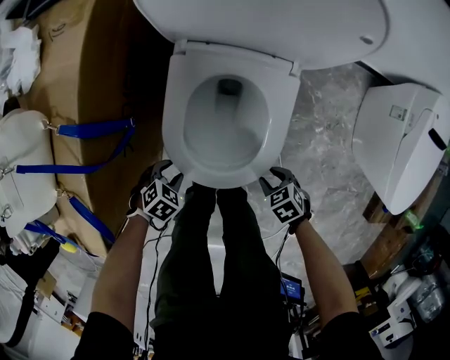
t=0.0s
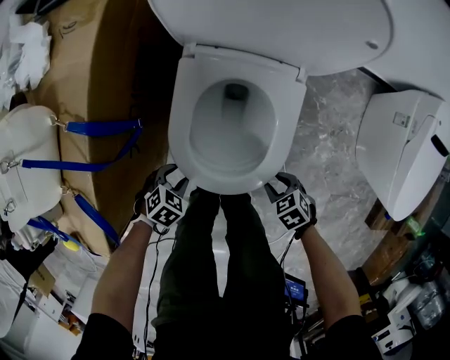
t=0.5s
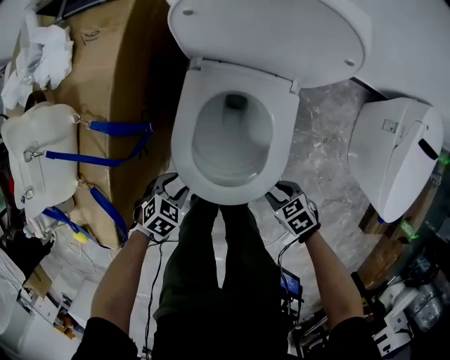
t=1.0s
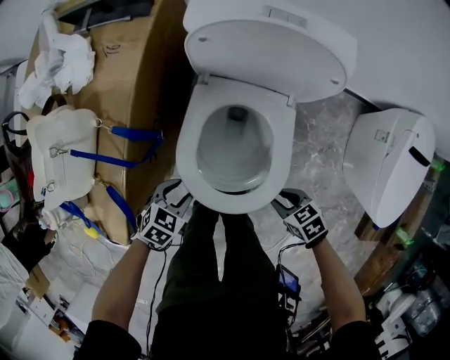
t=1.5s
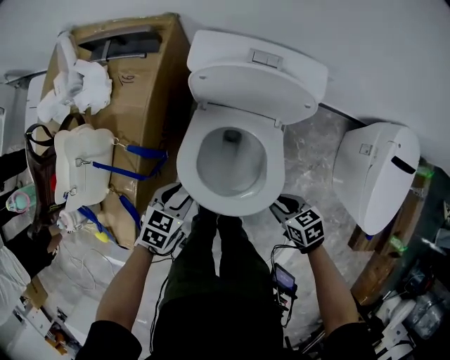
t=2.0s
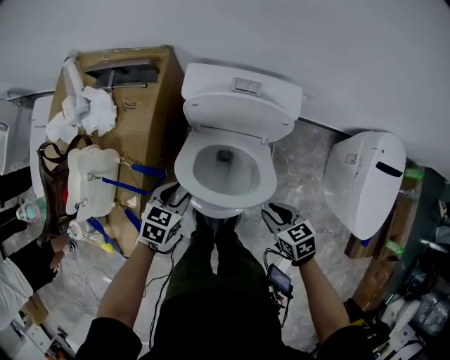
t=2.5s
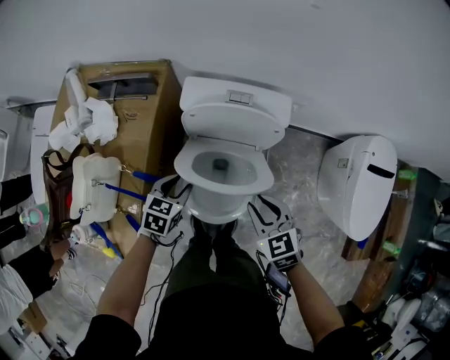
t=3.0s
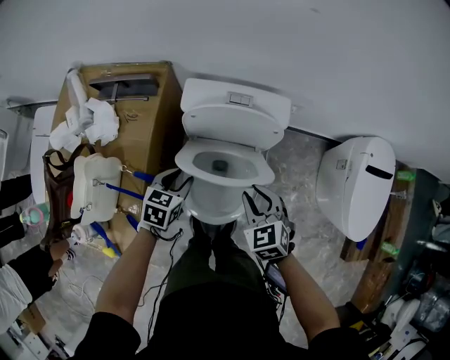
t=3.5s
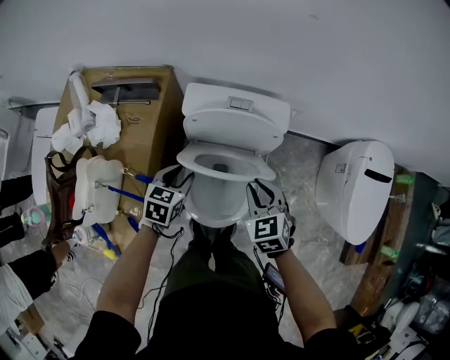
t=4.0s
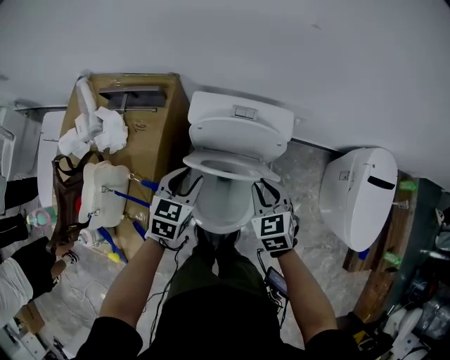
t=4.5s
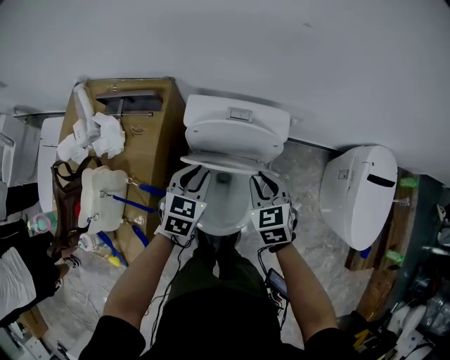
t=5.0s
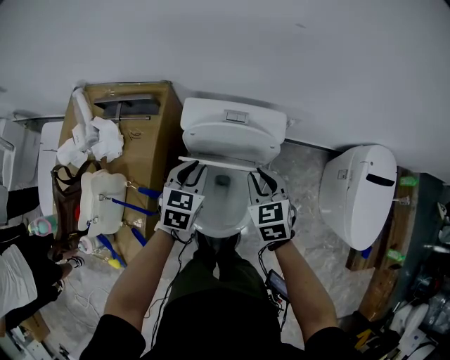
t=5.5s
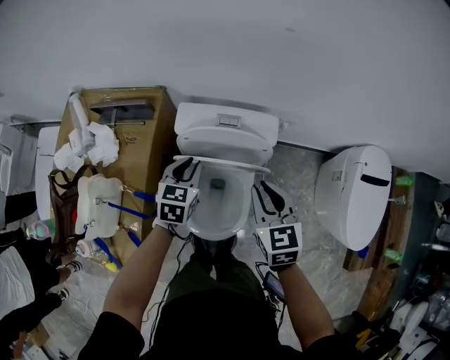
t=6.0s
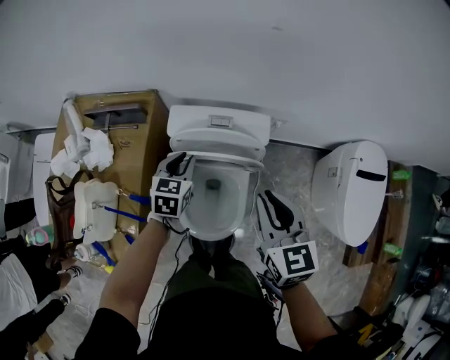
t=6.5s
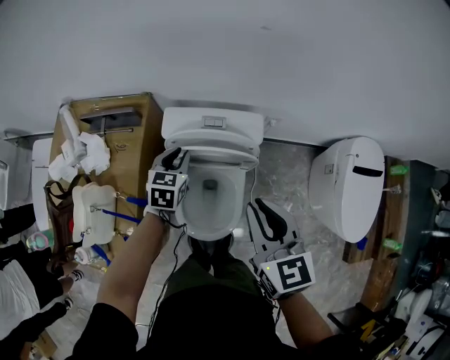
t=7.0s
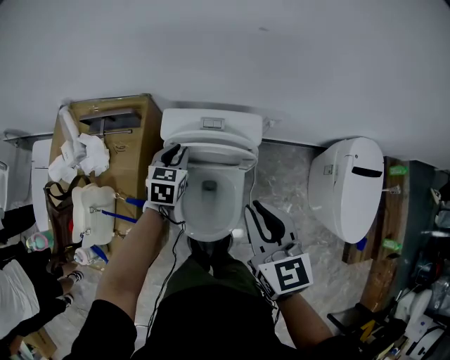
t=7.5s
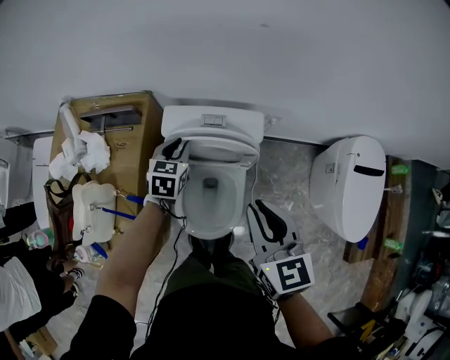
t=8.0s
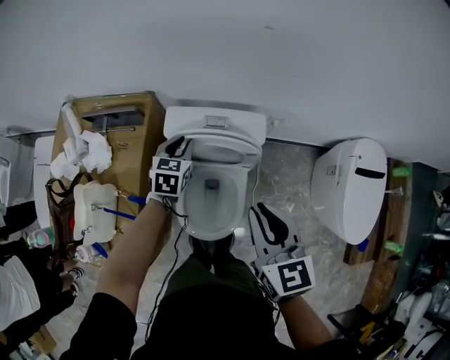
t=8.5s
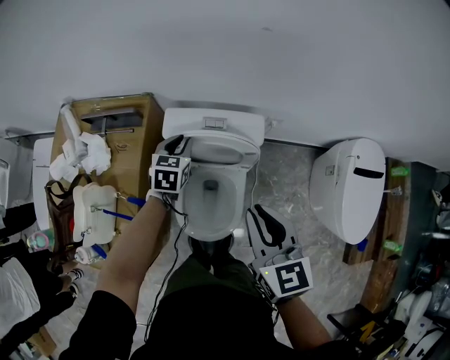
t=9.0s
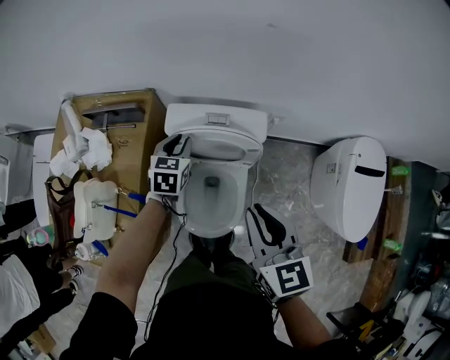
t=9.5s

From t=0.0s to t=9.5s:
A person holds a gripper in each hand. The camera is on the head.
From t=0.0s to t=2.0s: The grippers both shift upward by roughly 25 cm. The right gripper rotates some 20 degrees. Meanwhile the left gripper changes its angle by about 30 degrees.
From t=2.0s to t=4.0s: The left gripper is displaced forward and upward by about 20 cm. The right gripper shifts approximately 25 cm upward and forward, and changes its angle by approximately 40 degrees.
From t=4.0s to t=5.5s: The right gripper travels forward by some 5 cm; the left gripper is displaced upward and forward by some 10 cm.
From t=5.5s to t=7.5s: The left gripper moves forward, about 5 cm. The right gripper heads upward and backward, covering roughly 15 cm, and turns by about 20 degrees.
From t=7.5s to t=9.5s: The grippers move only a little.

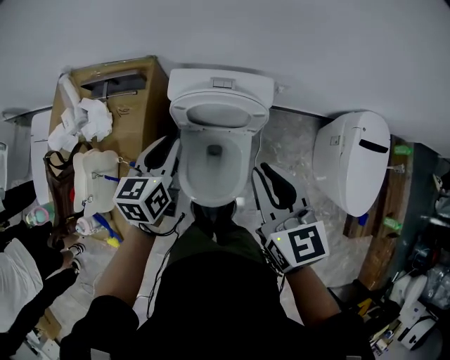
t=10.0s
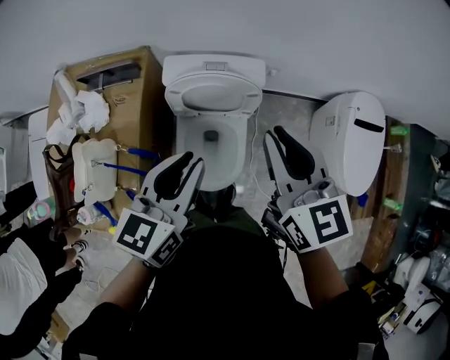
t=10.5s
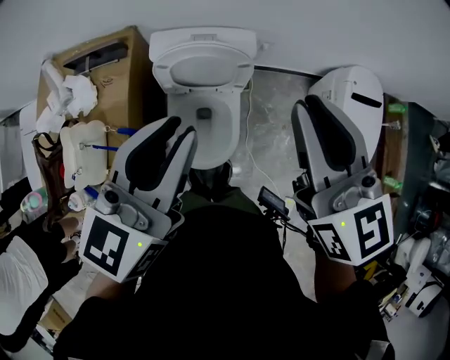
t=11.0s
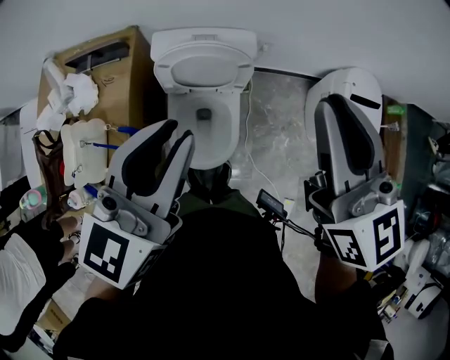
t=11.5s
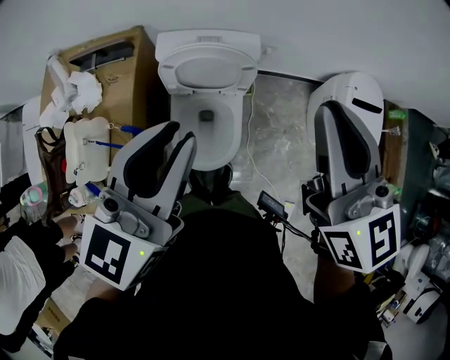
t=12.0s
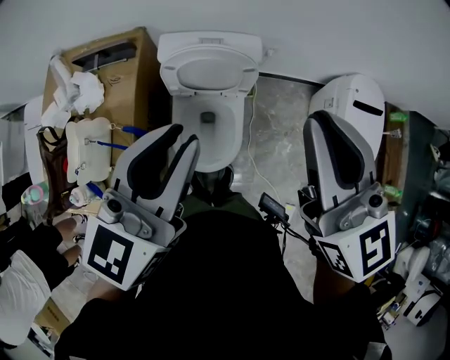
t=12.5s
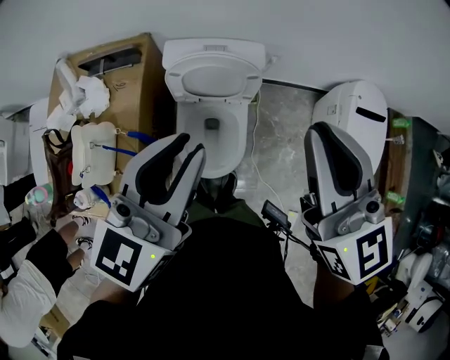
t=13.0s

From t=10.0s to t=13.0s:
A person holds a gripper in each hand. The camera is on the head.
From t=10.0s to t=11.5s: The right gripper heads upward and to the right, covering roughly 20 cm, while the left gripper heads upward, backward and to the right, covering some 25 cm, and rotates roughly 30 degrees.
From t=11.5s to t=13.0s: The grippers stay close to where they were, moving slightly.

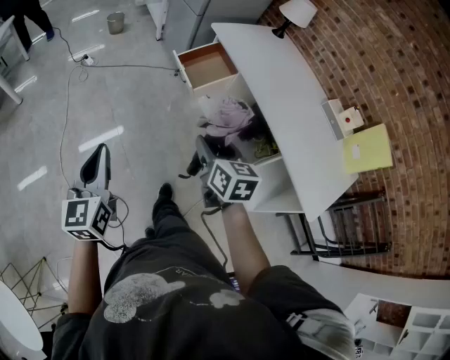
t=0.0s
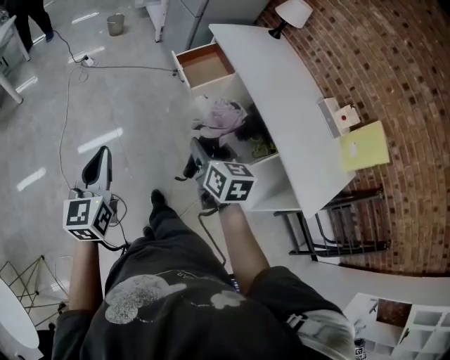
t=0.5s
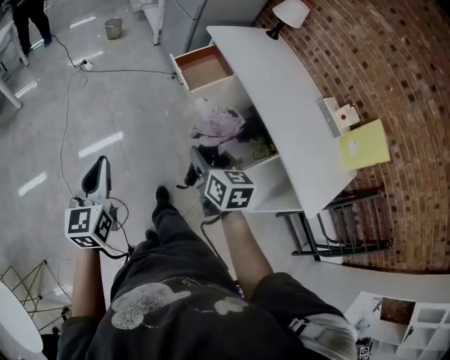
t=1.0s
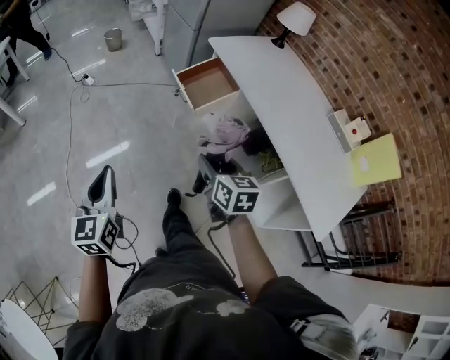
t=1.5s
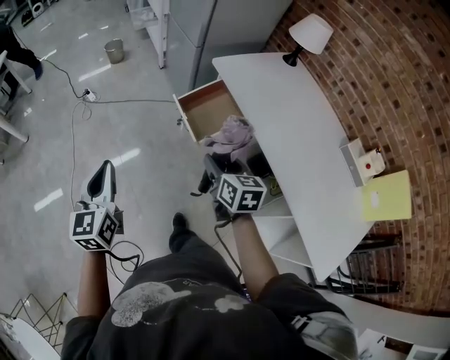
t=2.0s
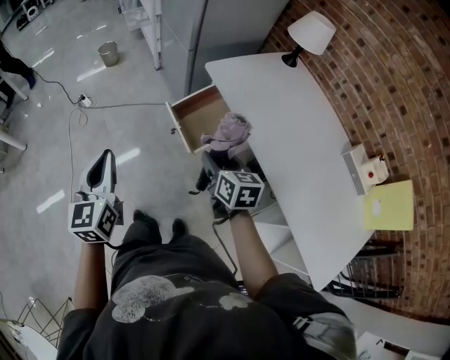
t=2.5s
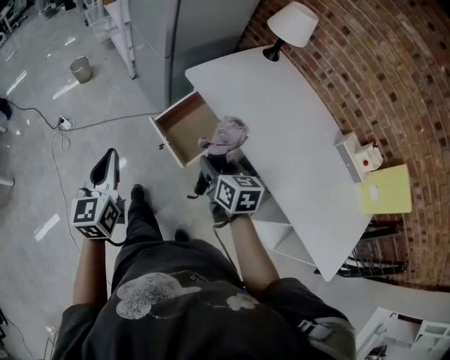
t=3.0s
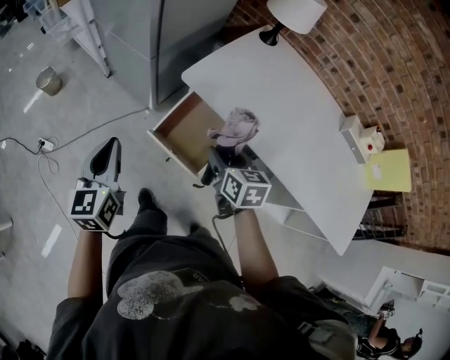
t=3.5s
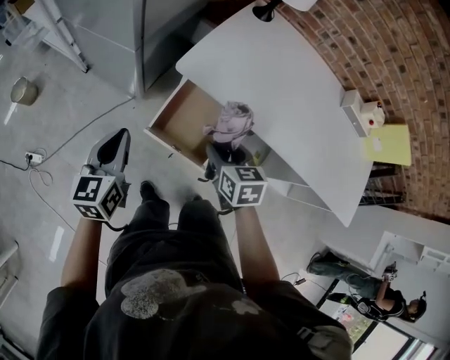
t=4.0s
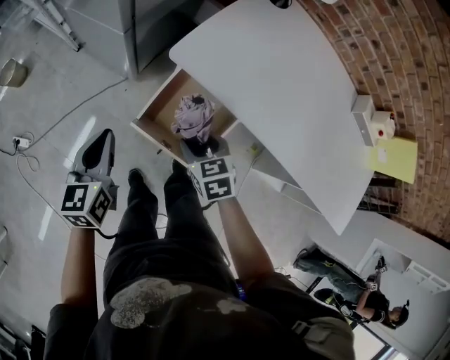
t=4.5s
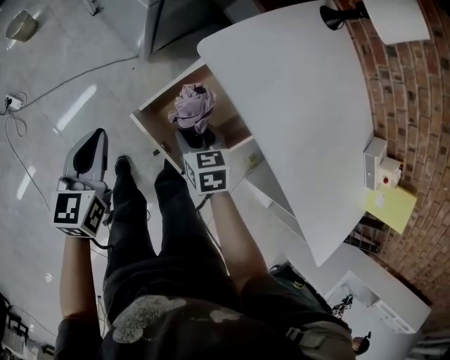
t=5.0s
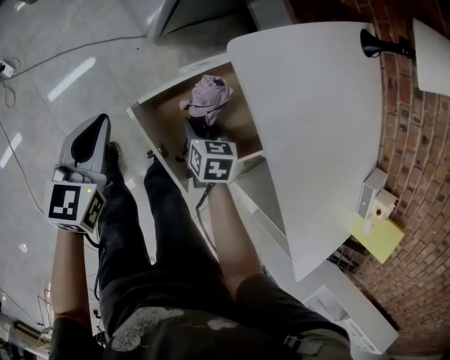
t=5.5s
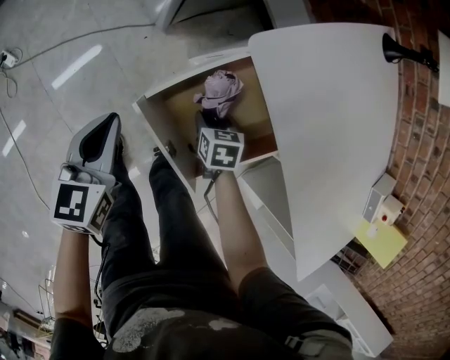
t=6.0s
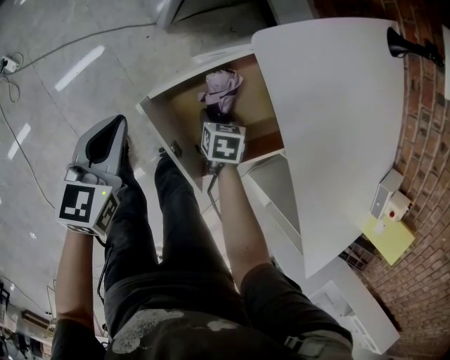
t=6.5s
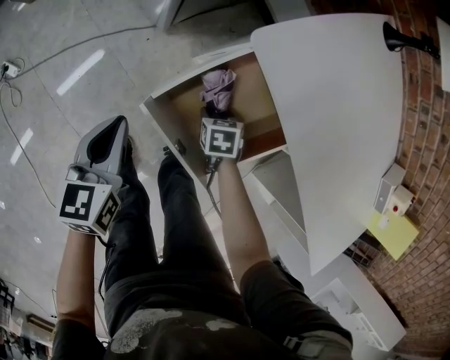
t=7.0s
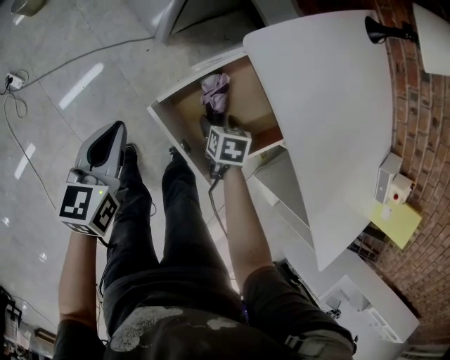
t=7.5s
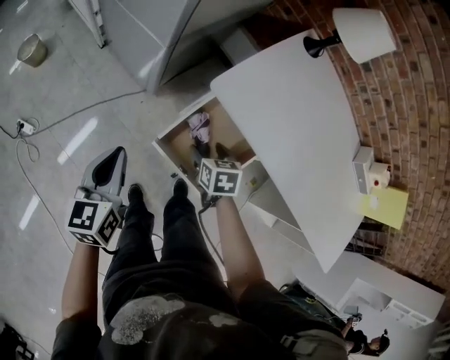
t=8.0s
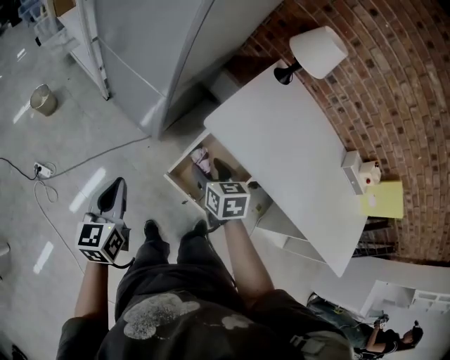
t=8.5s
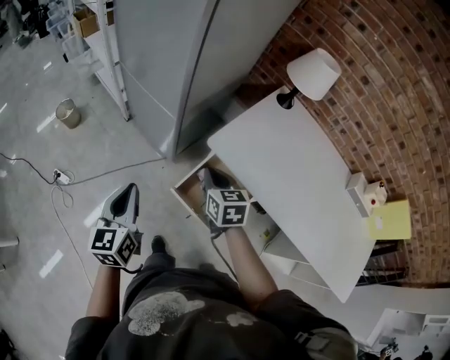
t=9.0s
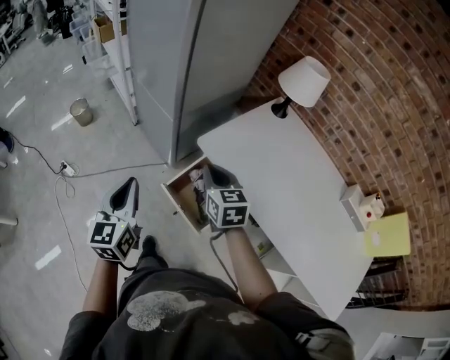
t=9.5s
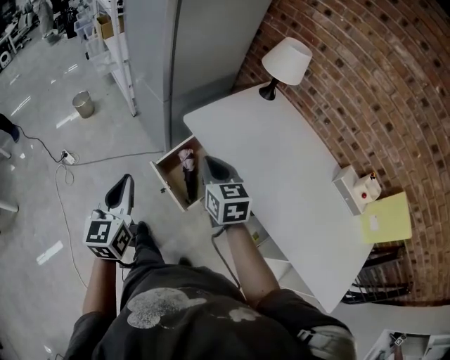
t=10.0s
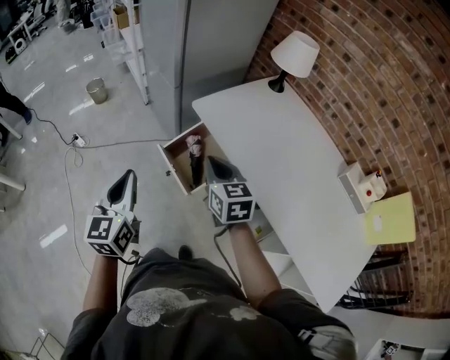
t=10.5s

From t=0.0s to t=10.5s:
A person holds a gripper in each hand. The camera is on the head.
From t=0.0s to t=2.0s: The grippers both shift forward by some 25 cm.
From t=2.0s to t=4.0s: The left gripper moves roughly 50 cm, and changes its angle by approximately 50 degrees. Meanwhile the right gripper changes place by approximately 30 cm, and rotates roughly 30 degrees.
From t=4.0s to t=6.5s: The right gripper is displaced downward by about 35 cm, and changes its angle by about 30 degrees. The left gripper heads downward, covering approximately 20 cm, and rotates approximately 20 degrees.
From t=6.5s to t=8.5s: The left gripper shifts approximately 25 cm upward and to the left. Meanwhile the right gripper shifts roughly 35 cm upward, and turns by about 30 degrees.
From t=8.5s to t=10.5s: The left gripper is displaced backward, to the right and upward by roughly 35 cm, and changes its angle by some 20 degrees, while the right gripper is displaced backward, upward and to the right by some 25 cm, changes its angle by some 30 degrees, and closes.

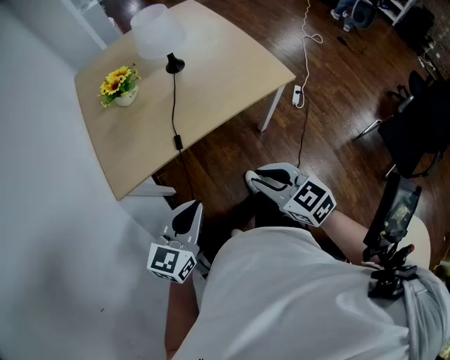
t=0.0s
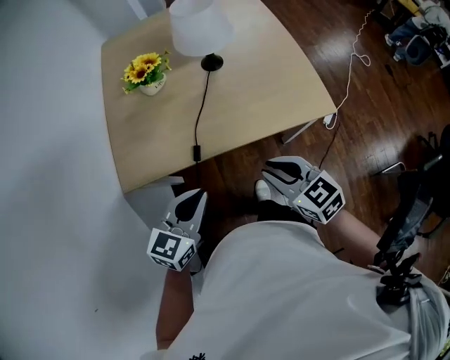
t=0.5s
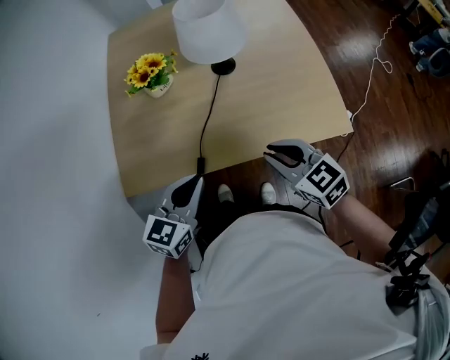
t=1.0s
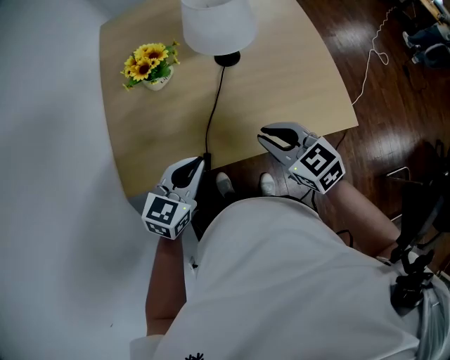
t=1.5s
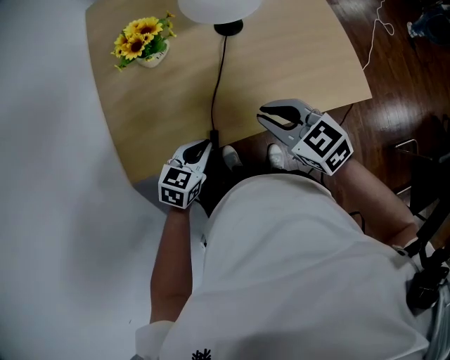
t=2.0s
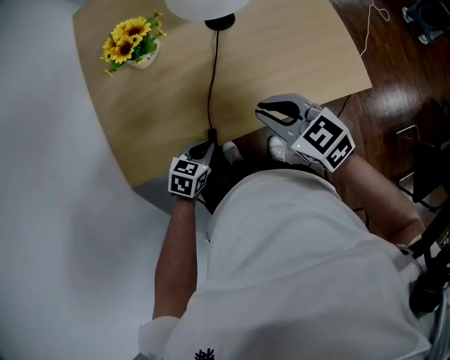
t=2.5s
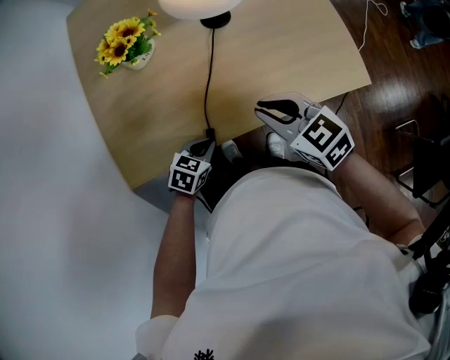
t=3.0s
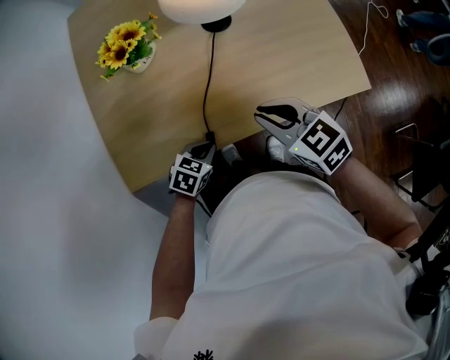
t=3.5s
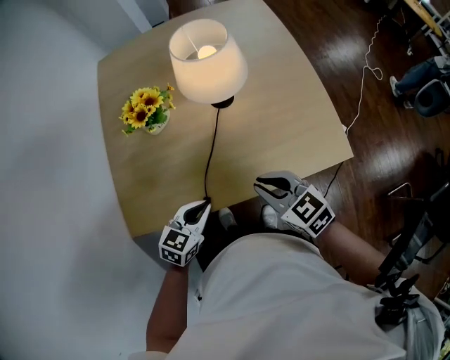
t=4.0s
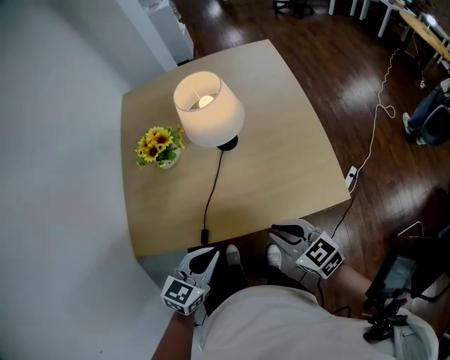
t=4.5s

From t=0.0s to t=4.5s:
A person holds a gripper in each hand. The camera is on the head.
From t=0.0s to t=2.0s: The right gripper travels forward by some 30 cm, while the left gripper travels forward and downward by roughly 30 cm, and swivels approximately 30 degrees.
From t=2.0s to t=4.5s: The right gripper shifts approximately 10 cm to the right. Meanwhile the left gripper goes some 15 cm upward and to the right.
